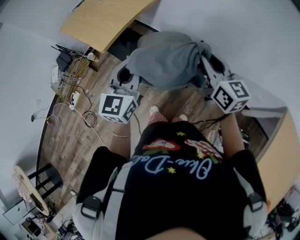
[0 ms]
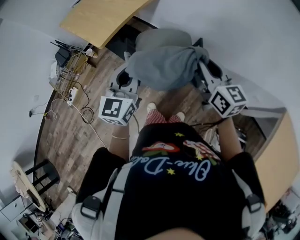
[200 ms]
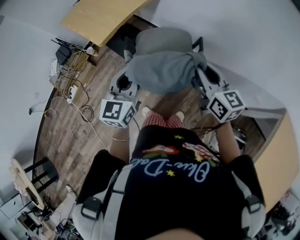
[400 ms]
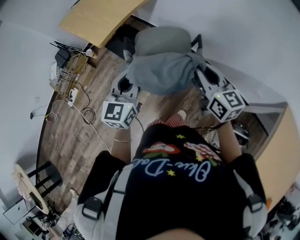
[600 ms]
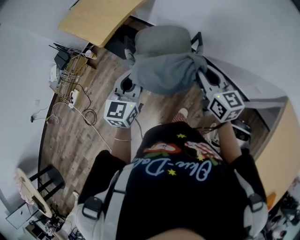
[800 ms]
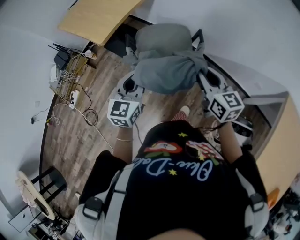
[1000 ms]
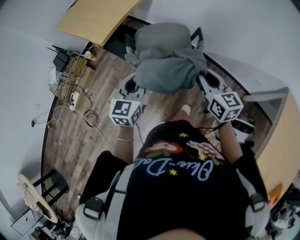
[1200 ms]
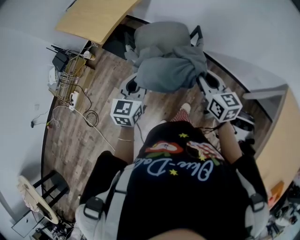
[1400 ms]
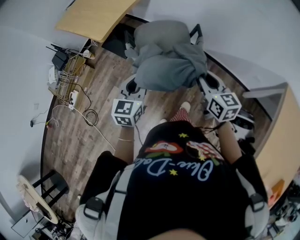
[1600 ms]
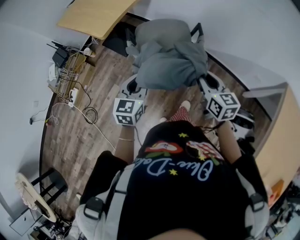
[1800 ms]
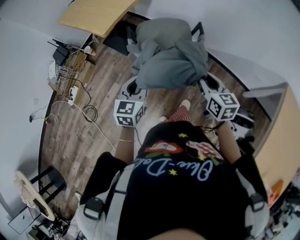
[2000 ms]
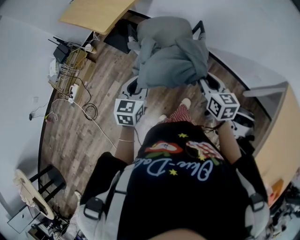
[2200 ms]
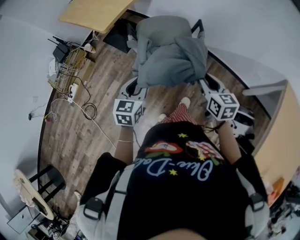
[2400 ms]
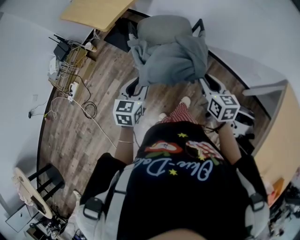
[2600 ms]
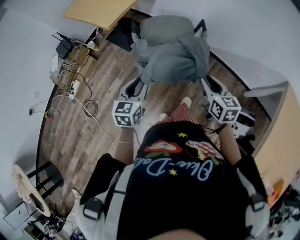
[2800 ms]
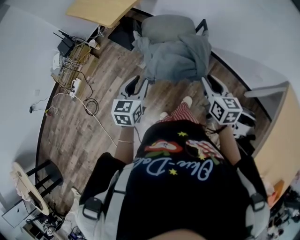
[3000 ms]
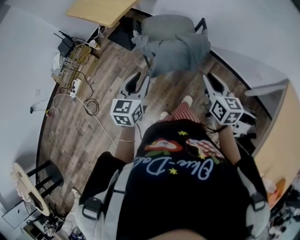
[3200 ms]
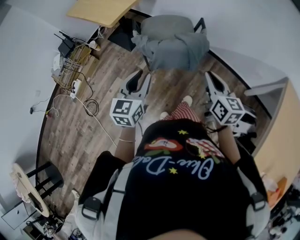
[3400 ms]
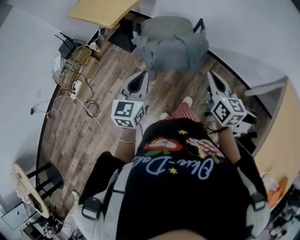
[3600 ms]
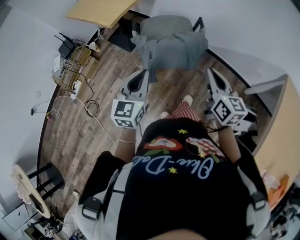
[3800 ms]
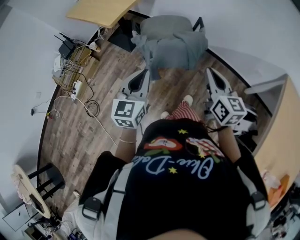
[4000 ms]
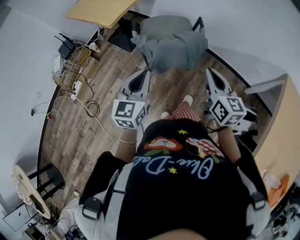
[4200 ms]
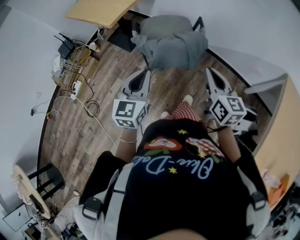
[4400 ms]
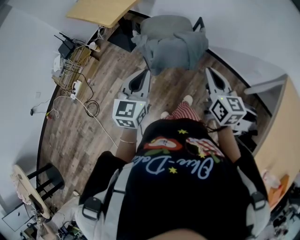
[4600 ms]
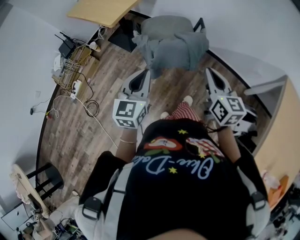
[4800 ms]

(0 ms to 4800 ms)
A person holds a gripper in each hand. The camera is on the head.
0 ms - 1600 ms: The left gripper goes approximately 20 cm downward and backward. Meanwhile the right gripper goes some 20 cm backward and downward.
1600 ms - 3200 ms: The grippers both shift backward by some 10 cm.
3200 ms - 4800 ms: The two grippers go about 5 cm upward. The left gripper closes. The right gripper closes its fingers.

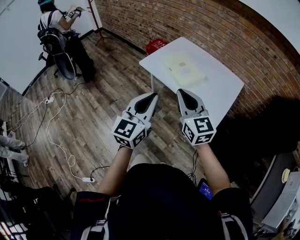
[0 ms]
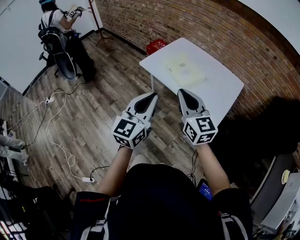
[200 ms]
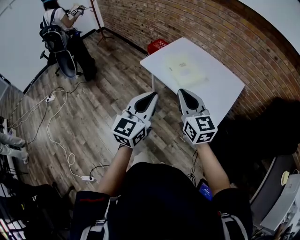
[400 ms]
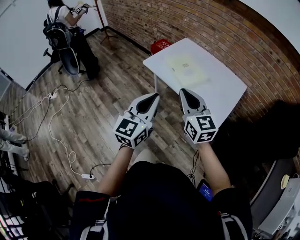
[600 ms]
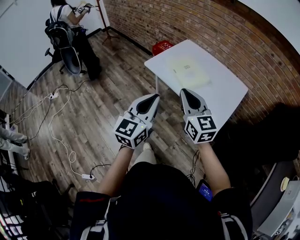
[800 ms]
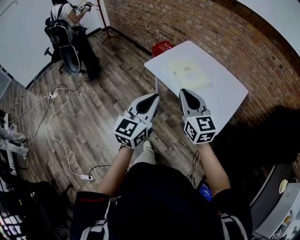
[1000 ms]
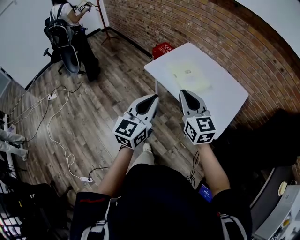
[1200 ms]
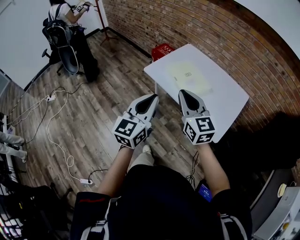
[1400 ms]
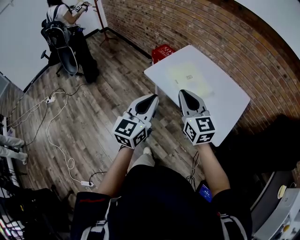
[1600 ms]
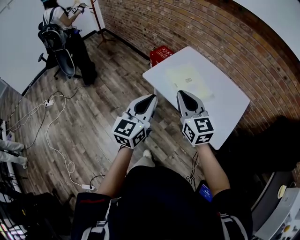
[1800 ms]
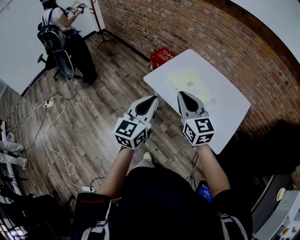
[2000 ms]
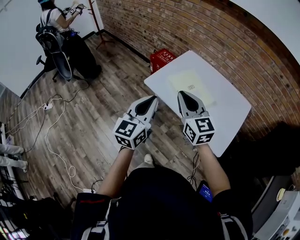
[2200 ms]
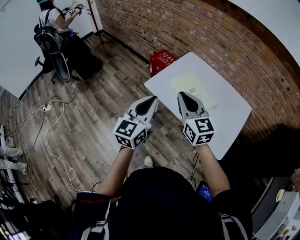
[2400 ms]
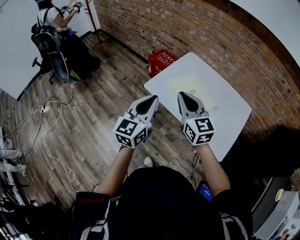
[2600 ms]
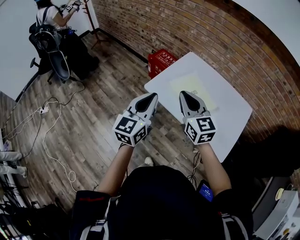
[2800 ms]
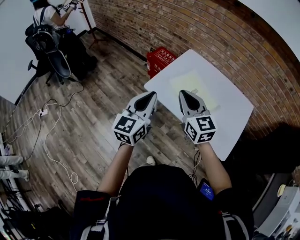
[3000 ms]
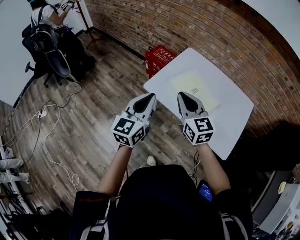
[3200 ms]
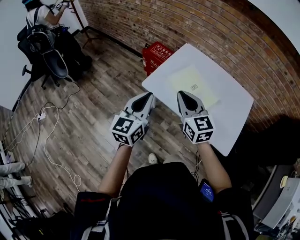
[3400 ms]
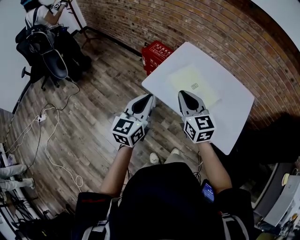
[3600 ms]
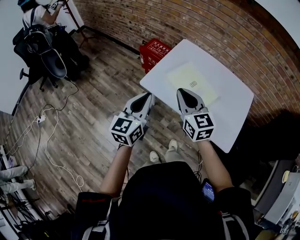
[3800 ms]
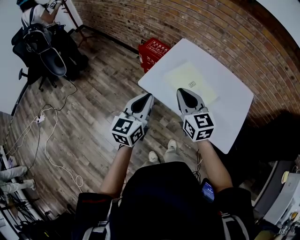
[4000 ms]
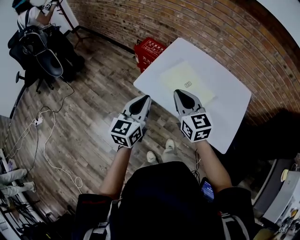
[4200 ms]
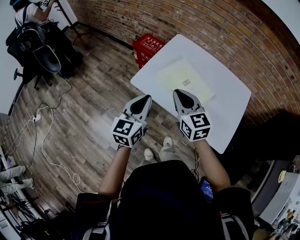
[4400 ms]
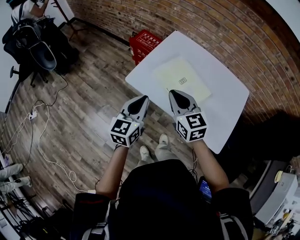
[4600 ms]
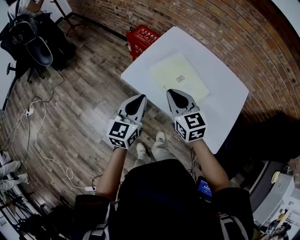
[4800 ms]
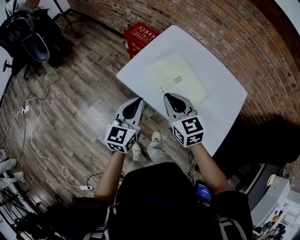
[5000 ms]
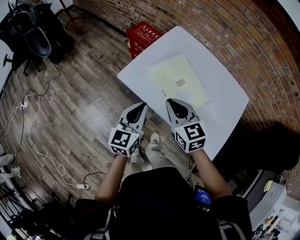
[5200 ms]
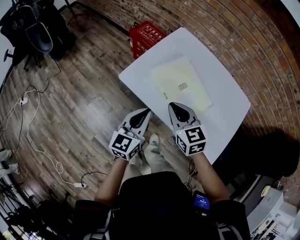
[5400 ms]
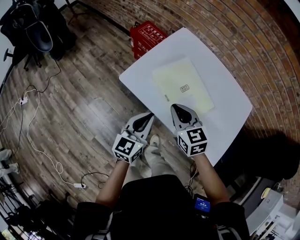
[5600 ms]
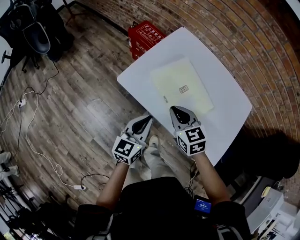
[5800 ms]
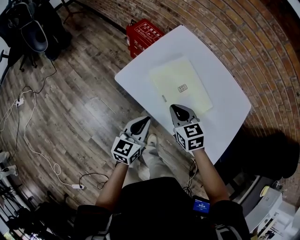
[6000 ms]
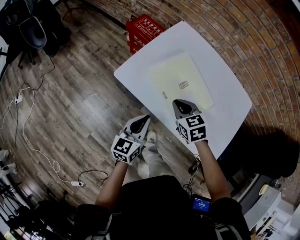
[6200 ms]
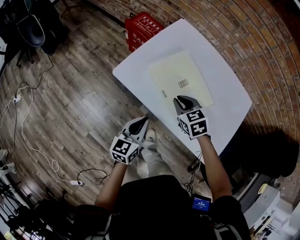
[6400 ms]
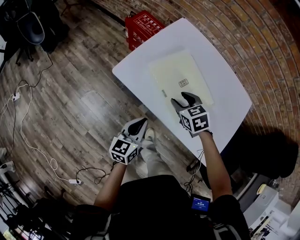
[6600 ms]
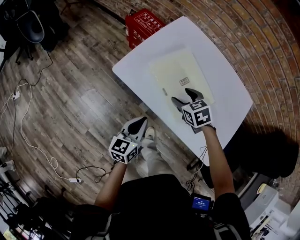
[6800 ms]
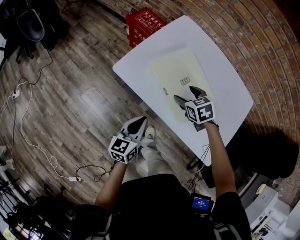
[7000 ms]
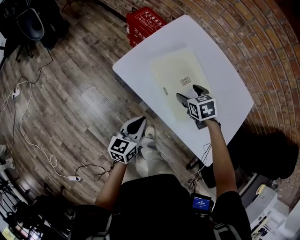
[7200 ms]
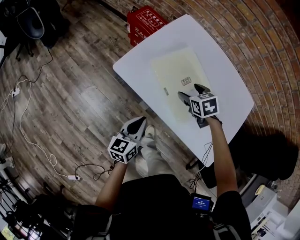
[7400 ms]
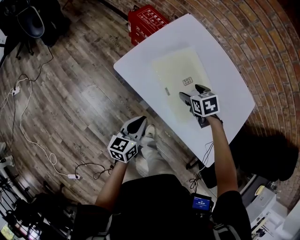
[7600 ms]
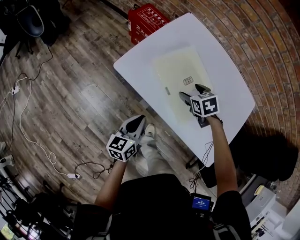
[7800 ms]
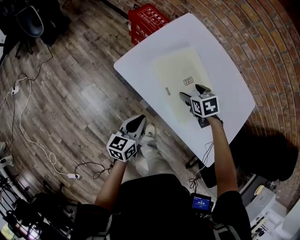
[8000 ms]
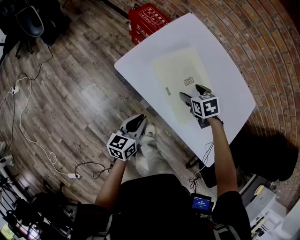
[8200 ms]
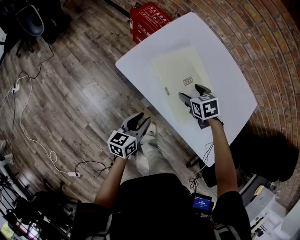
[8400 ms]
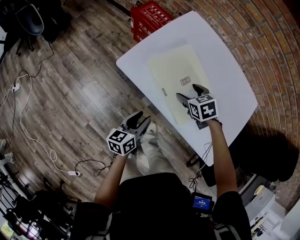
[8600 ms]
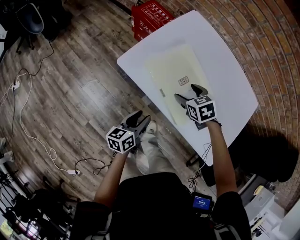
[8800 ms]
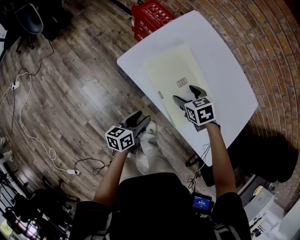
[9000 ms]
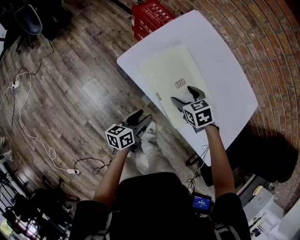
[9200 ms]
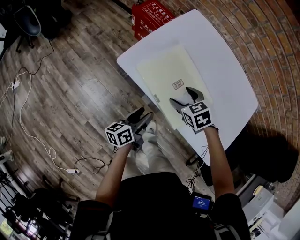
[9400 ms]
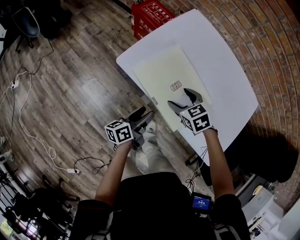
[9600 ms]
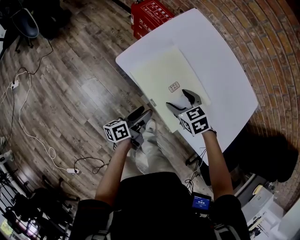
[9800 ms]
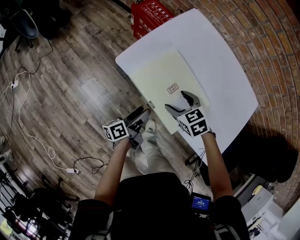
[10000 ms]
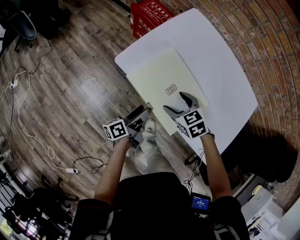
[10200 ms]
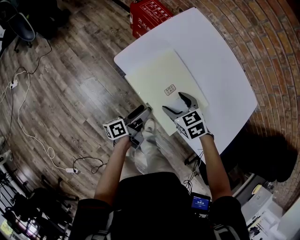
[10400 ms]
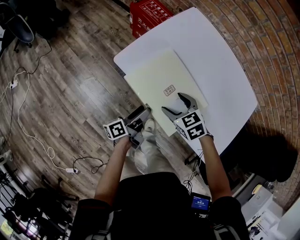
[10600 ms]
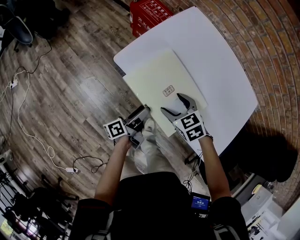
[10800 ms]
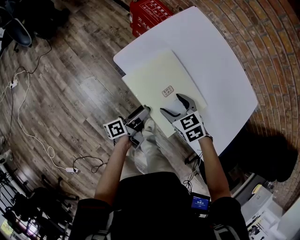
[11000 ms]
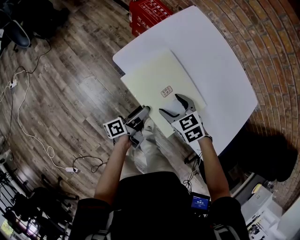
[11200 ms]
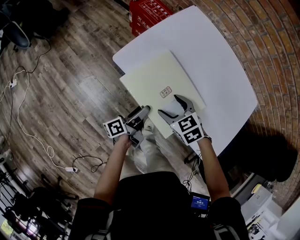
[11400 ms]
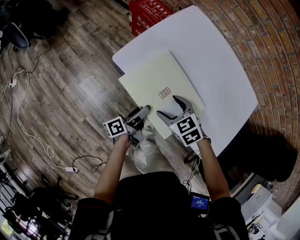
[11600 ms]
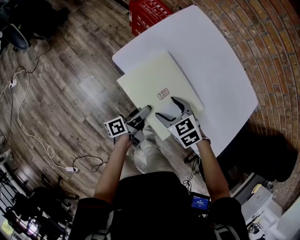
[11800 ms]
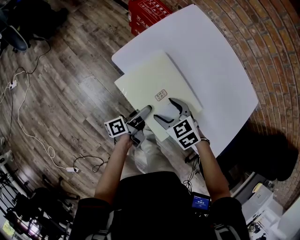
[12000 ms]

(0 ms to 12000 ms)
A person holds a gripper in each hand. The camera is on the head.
0 ms - 1600 ms: Both grippers travel together forward, some 10 cm.
1600 ms - 3000 ms: The grippers both shift forward and to the left by roughly 20 cm.
3000 ms - 4400 ms: Both grippers move downward, some 10 cm.
4400 ms - 6000 ms: The two grippers go roughly 15 cm downward. The right gripper changes its angle by some 20 degrees.
6000 ms - 7600 ms: The right gripper moves downward, to the right and forward, roughly 15 cm, rotates approximately 20 degrees, and opens, while the left gripper heads downward, covering some 5 cm.
7600 ms - 9000 ms: The left gripper is displaced downward by about 5 cm, and opens its fingers, while the right gripper is displaced to the left by about 5 cm.
9000 ms - 10400 ms: The left gripper turns by some 30 degrees, and opens. Meanwhile the right gripper changes place by some 5 cm.
10400 ms - 12000 ms: The right gripper ends up some 5 cm from where it was.

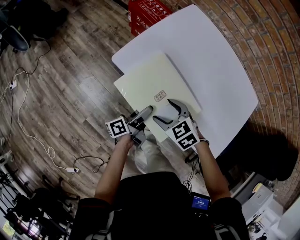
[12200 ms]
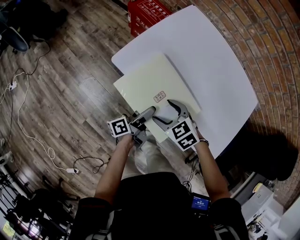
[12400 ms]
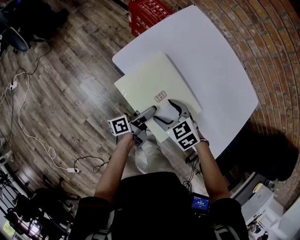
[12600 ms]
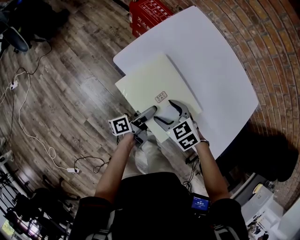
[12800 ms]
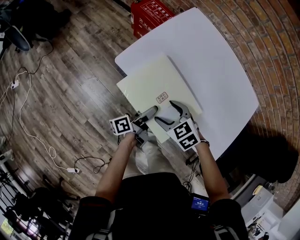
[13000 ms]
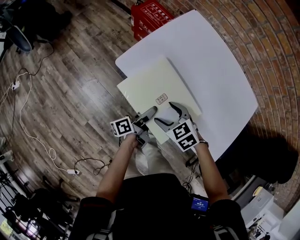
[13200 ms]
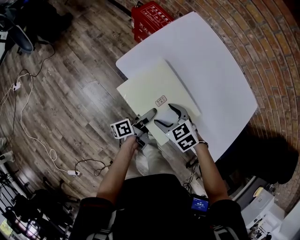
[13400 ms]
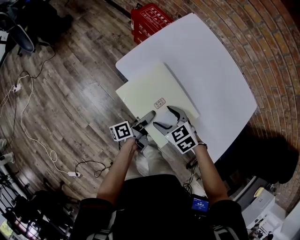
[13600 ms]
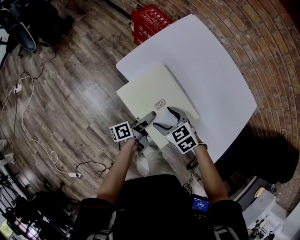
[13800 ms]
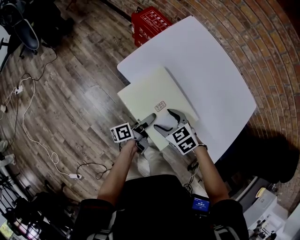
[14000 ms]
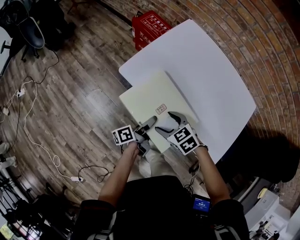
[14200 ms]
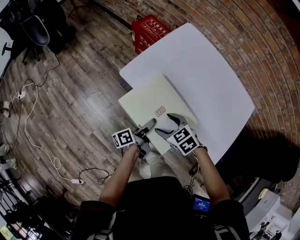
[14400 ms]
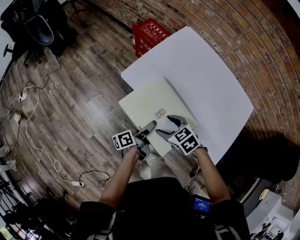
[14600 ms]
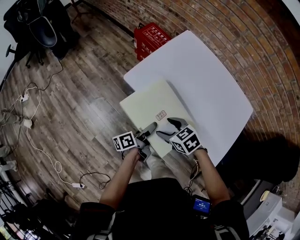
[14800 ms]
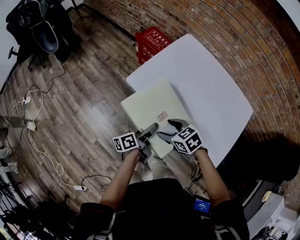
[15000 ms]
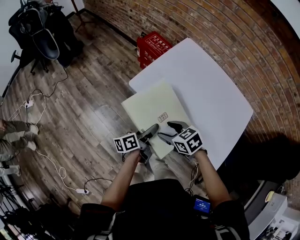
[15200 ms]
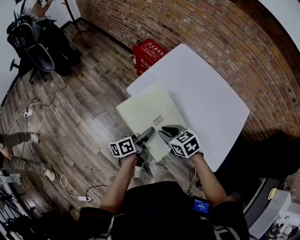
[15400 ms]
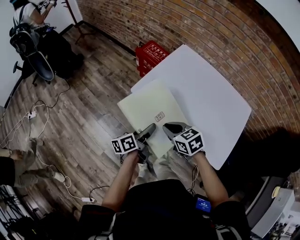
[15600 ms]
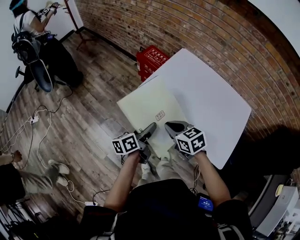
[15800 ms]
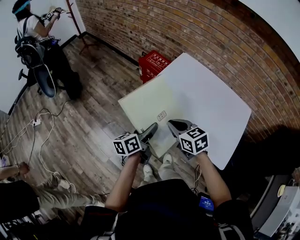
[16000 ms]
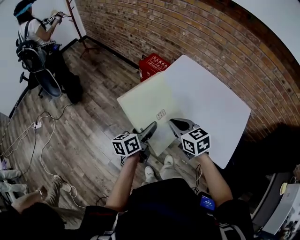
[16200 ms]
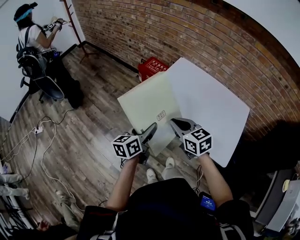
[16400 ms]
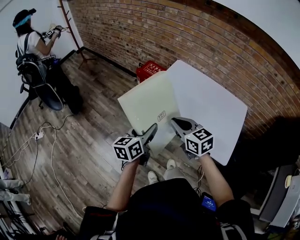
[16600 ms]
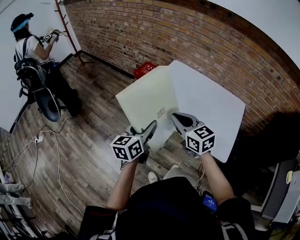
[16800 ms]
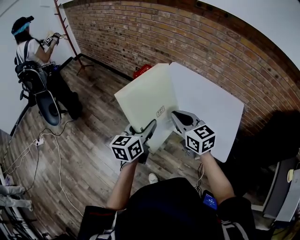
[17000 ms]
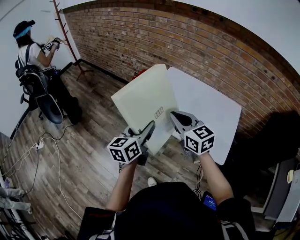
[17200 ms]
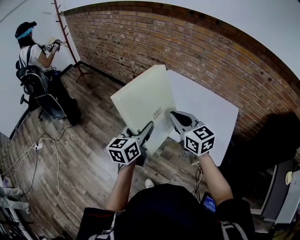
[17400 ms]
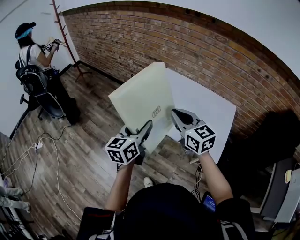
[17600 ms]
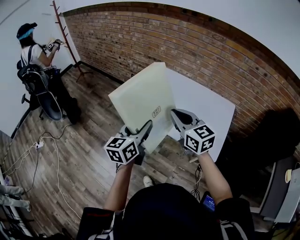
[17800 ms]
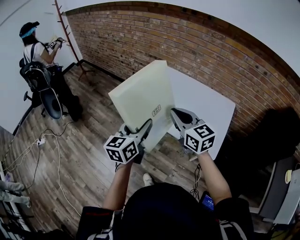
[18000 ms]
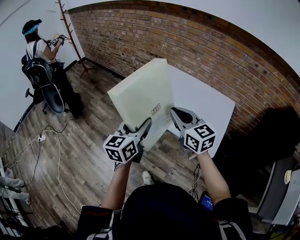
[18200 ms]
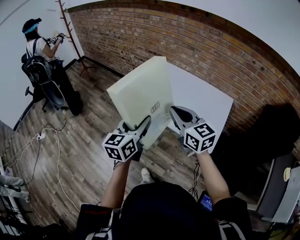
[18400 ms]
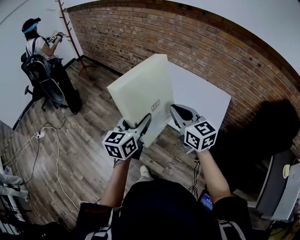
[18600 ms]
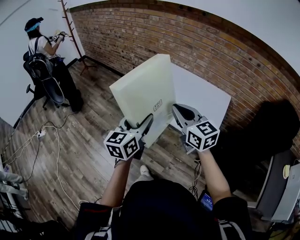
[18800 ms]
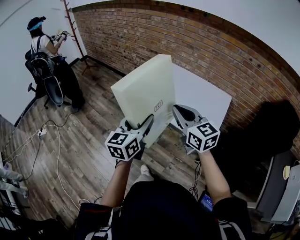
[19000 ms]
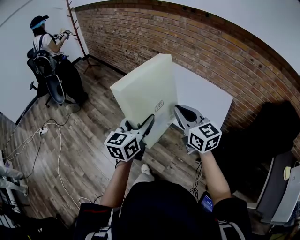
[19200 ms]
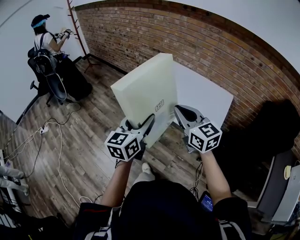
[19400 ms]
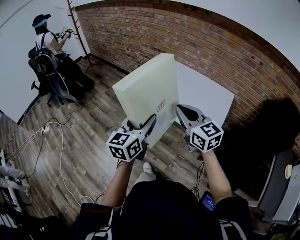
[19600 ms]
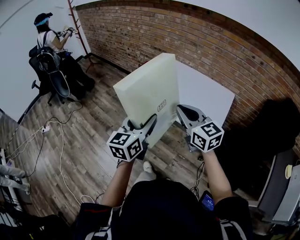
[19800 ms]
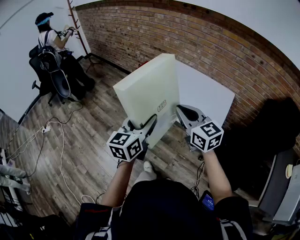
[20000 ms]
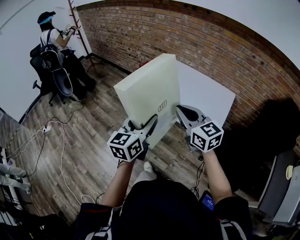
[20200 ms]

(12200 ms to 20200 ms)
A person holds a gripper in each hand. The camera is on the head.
12200 ms - 13800 ms: The grippers stay close to where they were, moving slightly.
13800 ms - 15400 ms: The right gripper travels upward by approximately 10 cm, and closes, while the left gripper heads upward and to the left, covering approximately 10 cm, and turns by approximately 20 degrees.
15400 ms - 17000 ms: The grippers both shift upward by about 20 cm. The left gripper twists some 40 degrees clockwise, seen from behind. Meanwhile the right gripper tilts its fingers approximately 30 degrees upward.
17000 ms - 18600 ms: Both grippers travel together backward, to the right and upward, some 20 cm.
18600 ms - 20200 ms: Both grippers travel together backward, about 5 cm.
